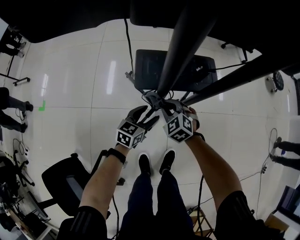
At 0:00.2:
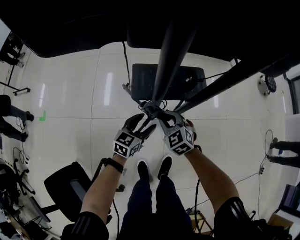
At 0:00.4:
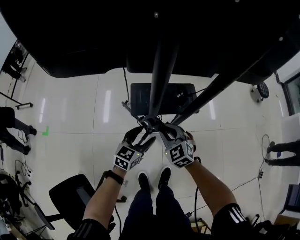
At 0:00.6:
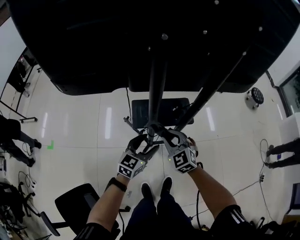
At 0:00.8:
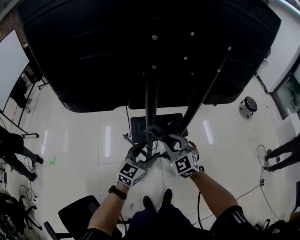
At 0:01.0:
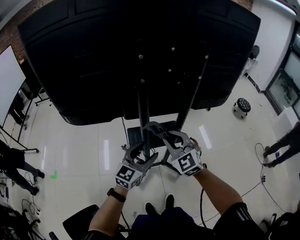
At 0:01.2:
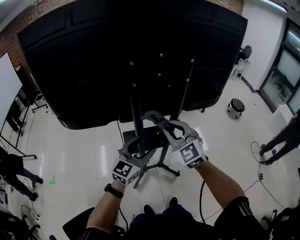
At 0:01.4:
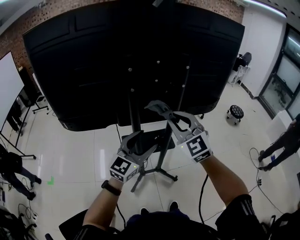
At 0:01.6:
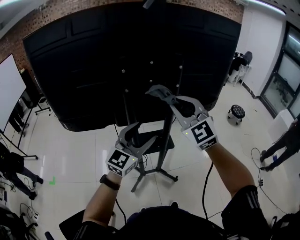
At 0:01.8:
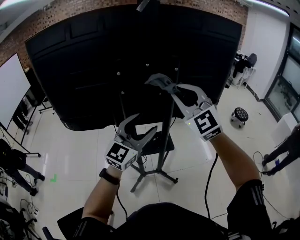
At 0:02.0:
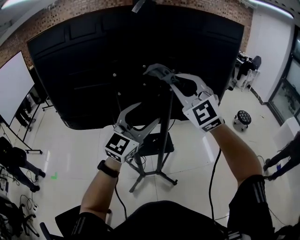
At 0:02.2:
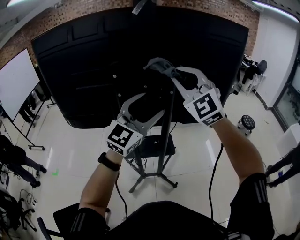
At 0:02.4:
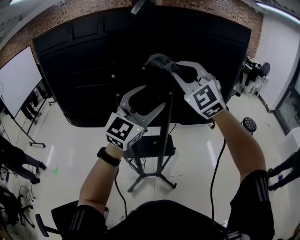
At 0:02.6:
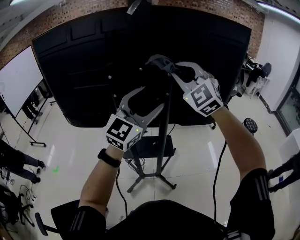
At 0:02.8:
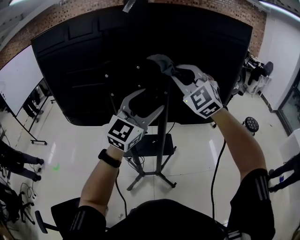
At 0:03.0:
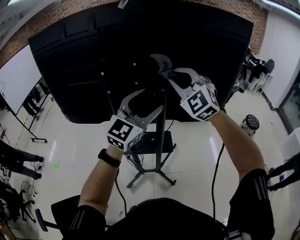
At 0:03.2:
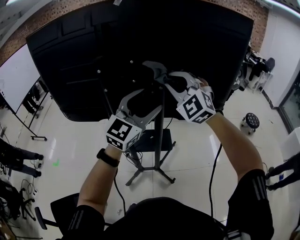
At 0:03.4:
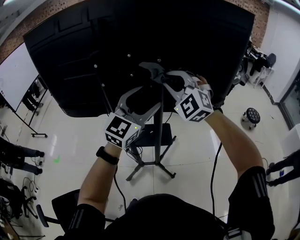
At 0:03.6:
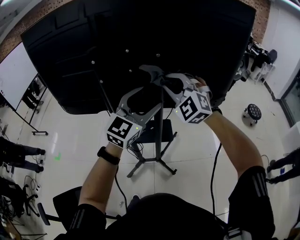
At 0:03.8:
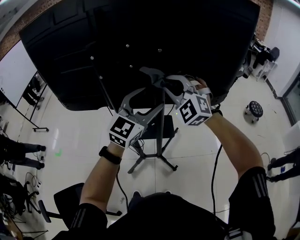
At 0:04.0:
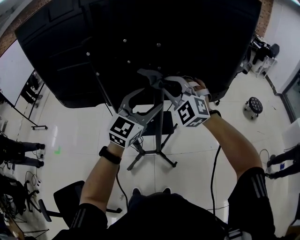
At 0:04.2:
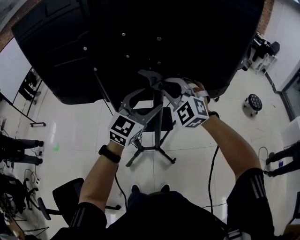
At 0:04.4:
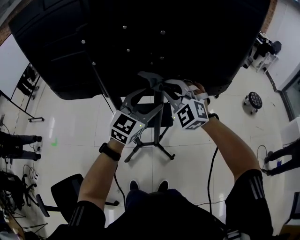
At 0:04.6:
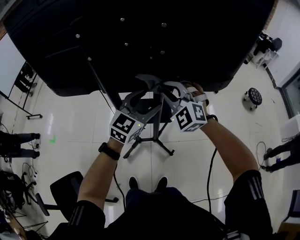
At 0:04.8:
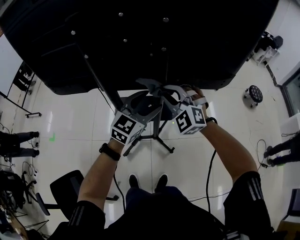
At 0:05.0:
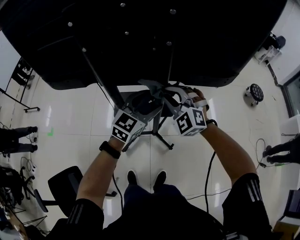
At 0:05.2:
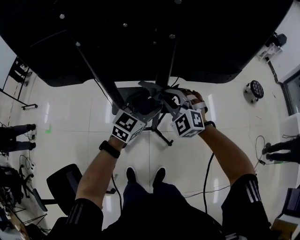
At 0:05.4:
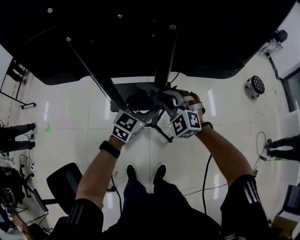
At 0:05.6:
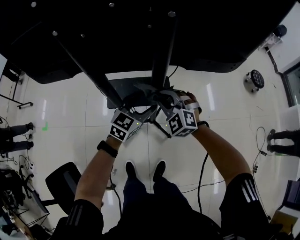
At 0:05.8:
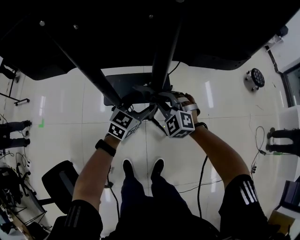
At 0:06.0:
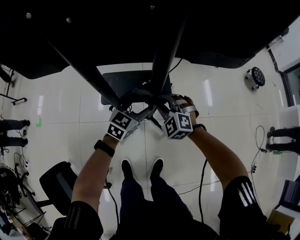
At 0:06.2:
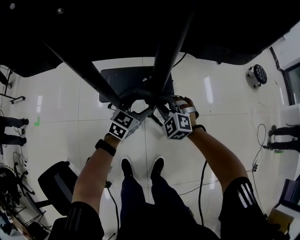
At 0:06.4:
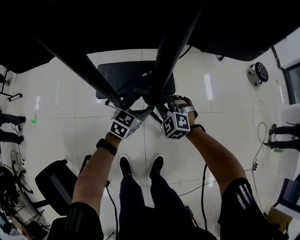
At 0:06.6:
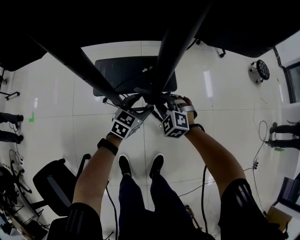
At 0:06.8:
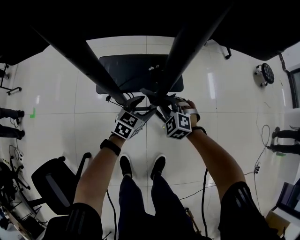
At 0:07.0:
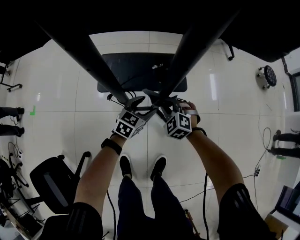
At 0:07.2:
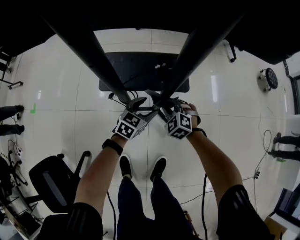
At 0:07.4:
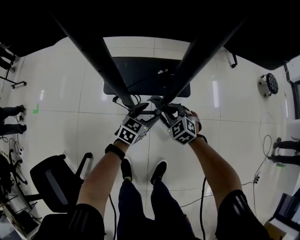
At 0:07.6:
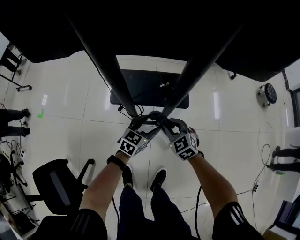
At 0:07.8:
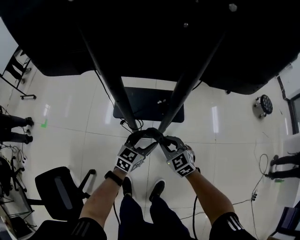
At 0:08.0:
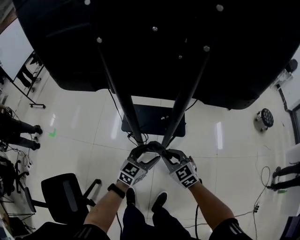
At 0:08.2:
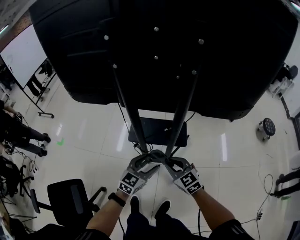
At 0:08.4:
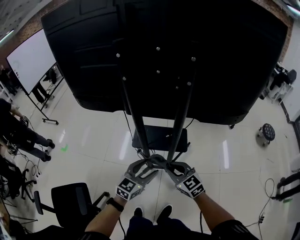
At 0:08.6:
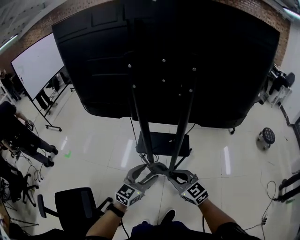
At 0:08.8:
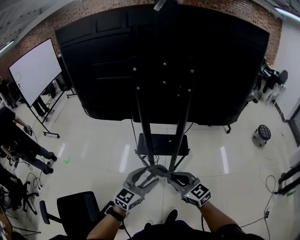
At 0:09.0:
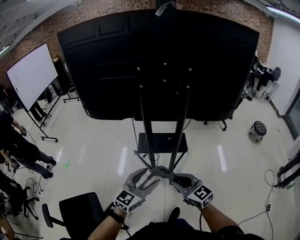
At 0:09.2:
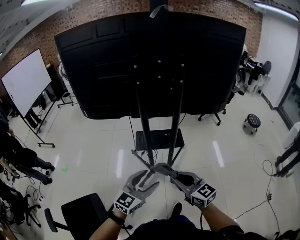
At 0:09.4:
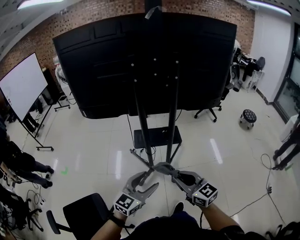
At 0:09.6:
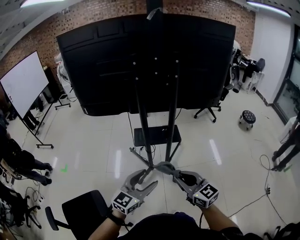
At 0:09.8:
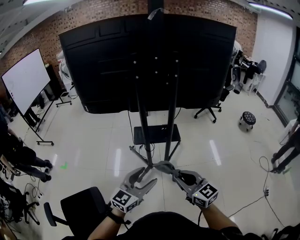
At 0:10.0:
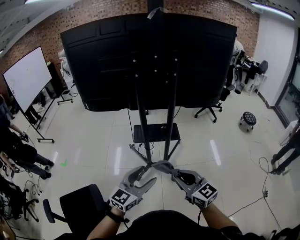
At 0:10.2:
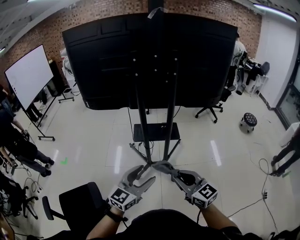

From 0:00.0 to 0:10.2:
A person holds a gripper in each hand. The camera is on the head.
From 0:00.0 to 0:01.4: Both grippers move upward, approximately 60 cm. The right gripper angles its fingers upward, by roughly 40 degrees, while the left gripper swivels roughly 40 degrees.
From 0:01.4 to 0:03.0: The right gripper moves forward, upward and to the right, roughly 20 cm, and rotates approximately 20 degrees. Meanwhile the left gripper moves upward, to the right and forward, roughly 25 cm.
From 0:03.0 to 0:04.4: The two grippers go roughly 20 cm downward.
From 0:04.4 to 0:05.8: Both grippers move downward, roughly 30 cm. The left gripper swivels some 20 degrees.
From 0:05.8 to 0:07.2: The two grippers go approximately 30 cm downward.
From 0:07.2 to 0:08.8: The grippers both shift upward and backward by approximately 50 cm. The left gripper swivels roughly 30 degrees, while the right gripper tilts its fingers roughly 30 degrees upward.
From 0:08.8 to 0:10.2: The two grippers go about 20 cm backward.

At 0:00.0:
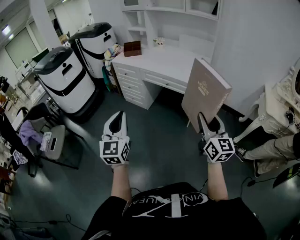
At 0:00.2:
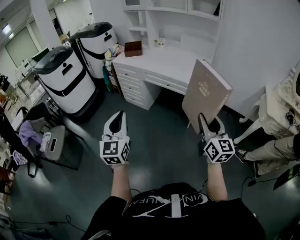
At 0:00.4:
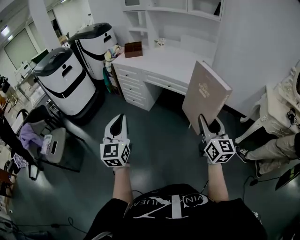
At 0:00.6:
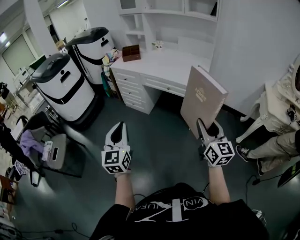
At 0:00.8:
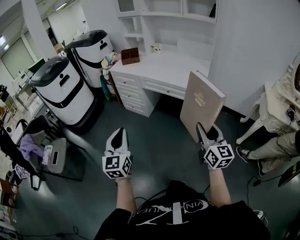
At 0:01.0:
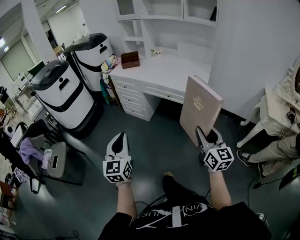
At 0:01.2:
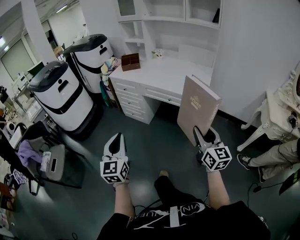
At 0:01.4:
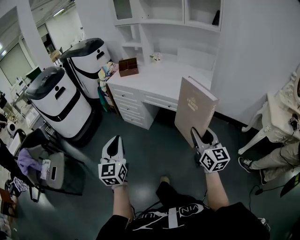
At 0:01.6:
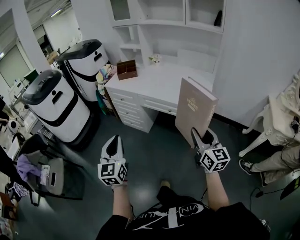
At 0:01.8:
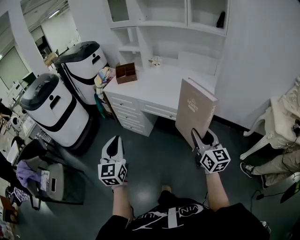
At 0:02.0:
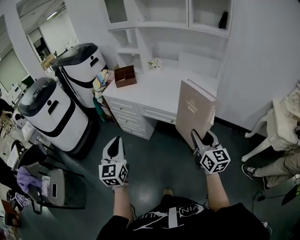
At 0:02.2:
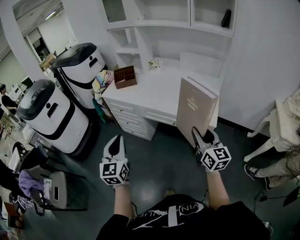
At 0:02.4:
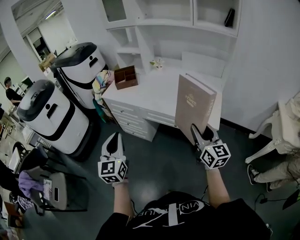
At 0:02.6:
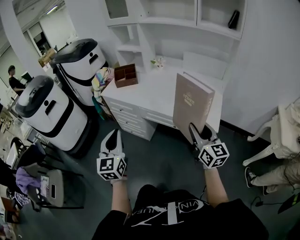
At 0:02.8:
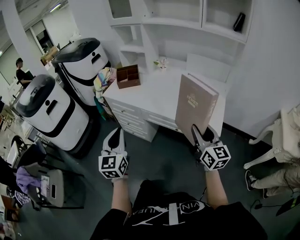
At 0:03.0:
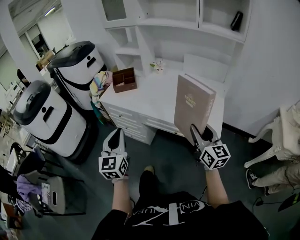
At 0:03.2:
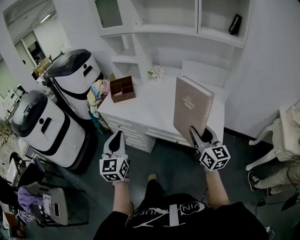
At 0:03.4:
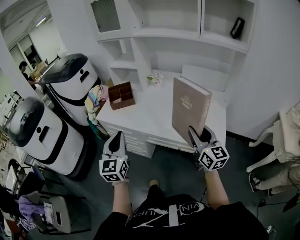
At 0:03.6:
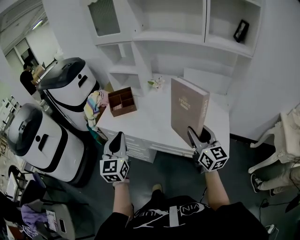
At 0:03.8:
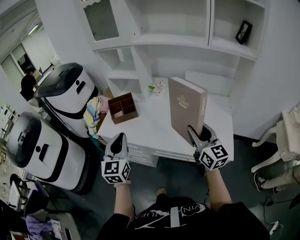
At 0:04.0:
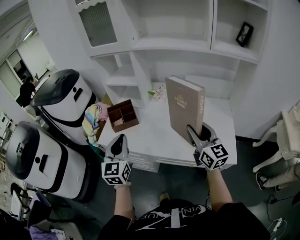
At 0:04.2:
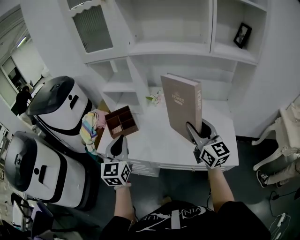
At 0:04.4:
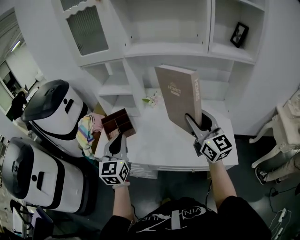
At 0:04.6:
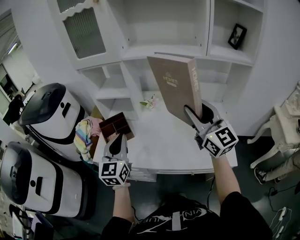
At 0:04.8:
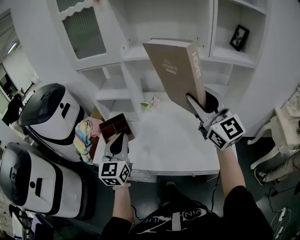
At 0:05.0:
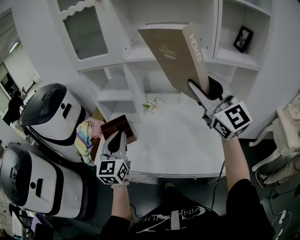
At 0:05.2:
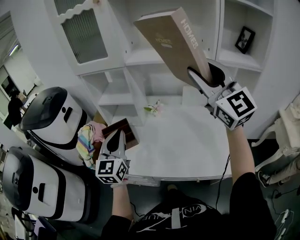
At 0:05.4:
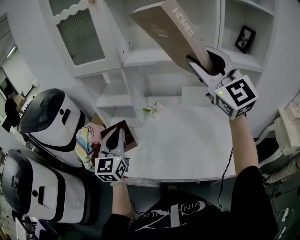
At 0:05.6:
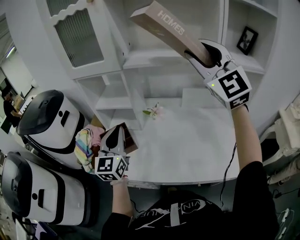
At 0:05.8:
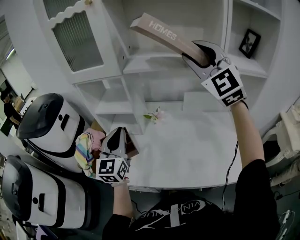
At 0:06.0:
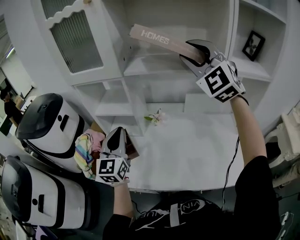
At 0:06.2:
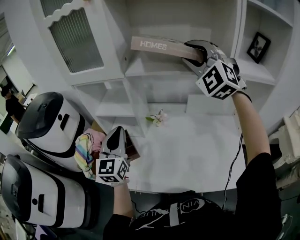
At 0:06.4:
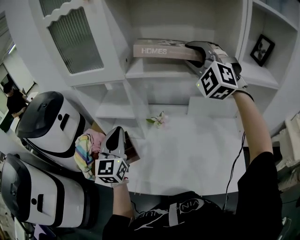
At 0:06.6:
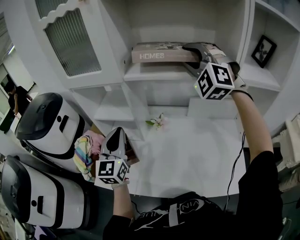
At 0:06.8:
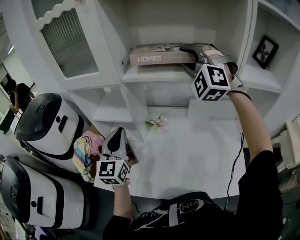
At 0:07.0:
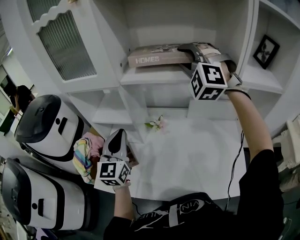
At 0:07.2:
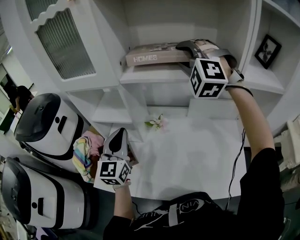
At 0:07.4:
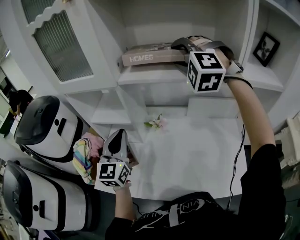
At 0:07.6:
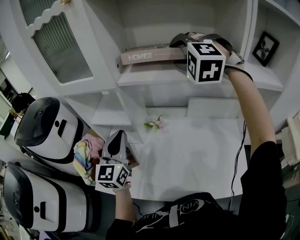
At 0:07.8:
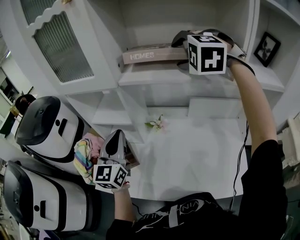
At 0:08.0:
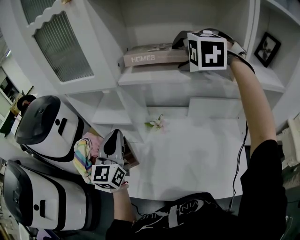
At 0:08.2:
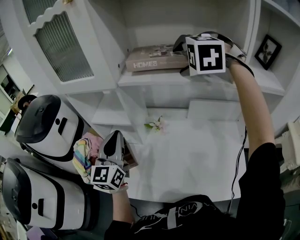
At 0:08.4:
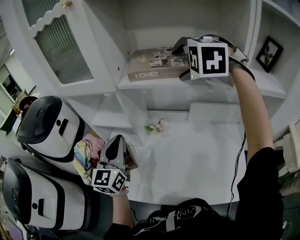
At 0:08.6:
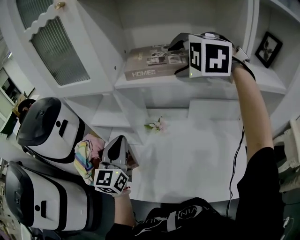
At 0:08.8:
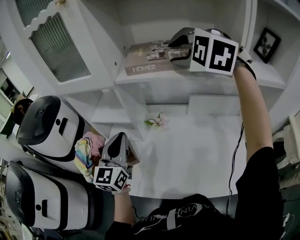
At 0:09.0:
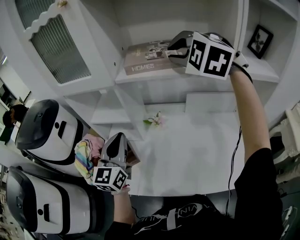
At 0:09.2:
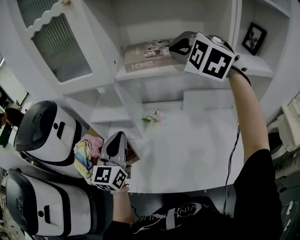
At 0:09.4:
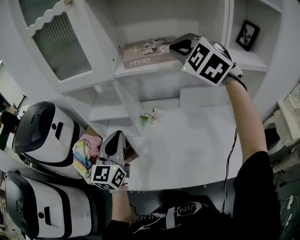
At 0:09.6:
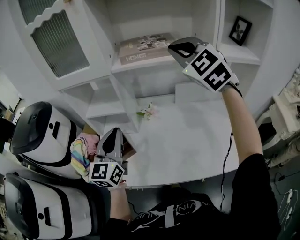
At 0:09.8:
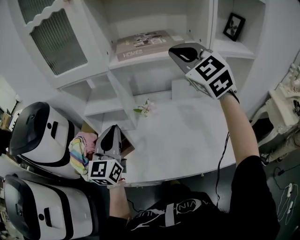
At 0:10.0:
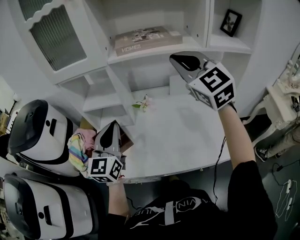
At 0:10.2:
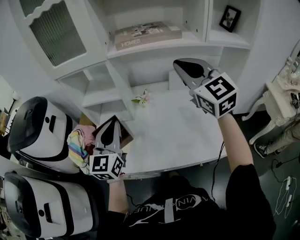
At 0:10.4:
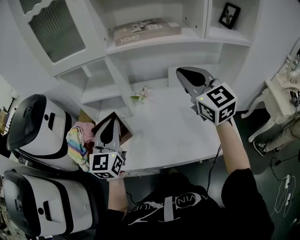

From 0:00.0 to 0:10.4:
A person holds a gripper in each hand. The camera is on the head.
From 0:00.0 to 0:01.4: The left gripper is displaced forward and to the left by some 15 cm. Meanwhile the right gripper heads forward, covering roughly 15 cm.
From 0:01.4 to 0:03.0: The two grippers go some 35 cm forward.
From 0:03.0 to 0:04.4: The right gripper goes about 35 cm forward and upward. Meanwhile the left gripper shifts about 35 cm forward.
From 0:04.4 to 0:06.0: The right gripper is displaced forward and upward by approximately 30 cm, and twists about 60 degrees counterclockwise, seen from behind, while the left gripper shifts some 15 cm forward.
From 0:06.0 to 0:07.4: The right gripper is displaced forward and downward by roughly 15 cm, and rotates approximately 40 degrees. The left gripper is displaced forward by approximately 5 cm.
From 0:07.4 to 0:09.0: The right gripper shifts by roughly 5 cm, rotates roughly 20 degrees, and closes its fingers.
From 0:09.0 to 0:10.4: The right gripper goes about 20 cm backward and downward, and rolls clockwise, seen from behind, by roughly 50 degrees. Meanwhile the left gripper heads backward, covering some 10 cm.

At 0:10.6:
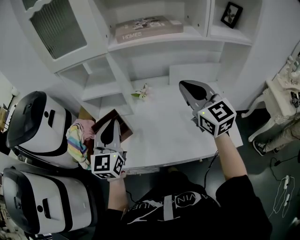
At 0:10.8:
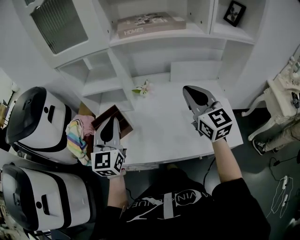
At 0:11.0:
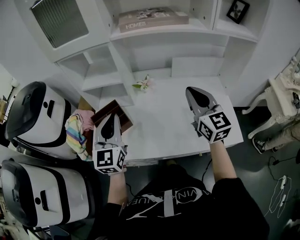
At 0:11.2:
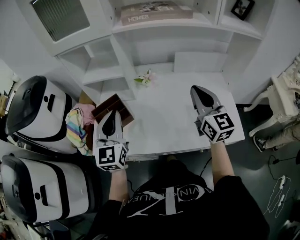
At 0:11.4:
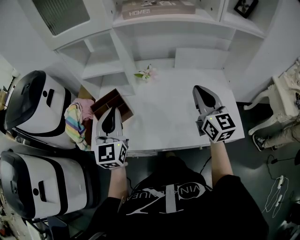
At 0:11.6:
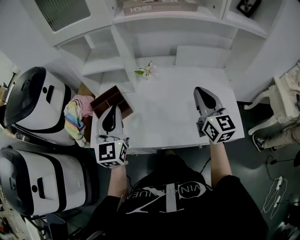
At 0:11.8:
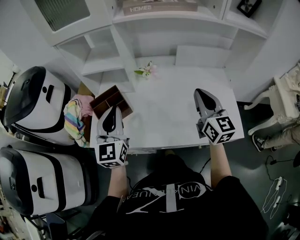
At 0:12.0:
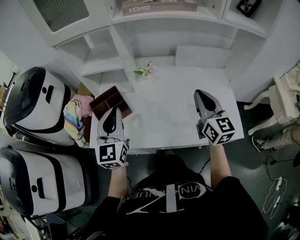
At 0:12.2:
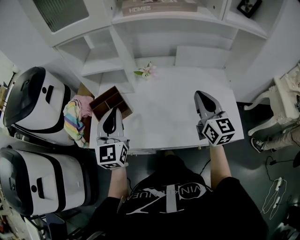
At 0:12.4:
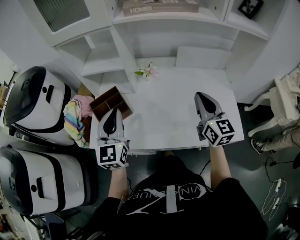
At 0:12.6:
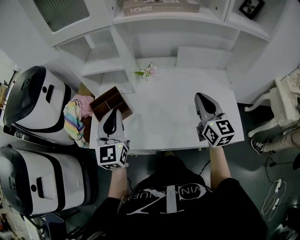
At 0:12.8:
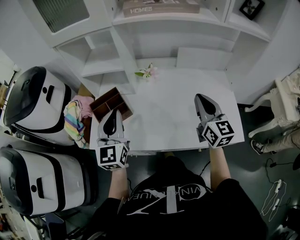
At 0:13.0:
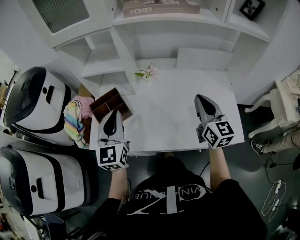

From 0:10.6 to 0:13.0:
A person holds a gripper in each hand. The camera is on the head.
From 0:10.6 to 0:11.8: The right gripper travels downward by approximately 10 cm.
From 0:11.8 to 0:13.0: The grippers stay close to where they were, moving slightly.
